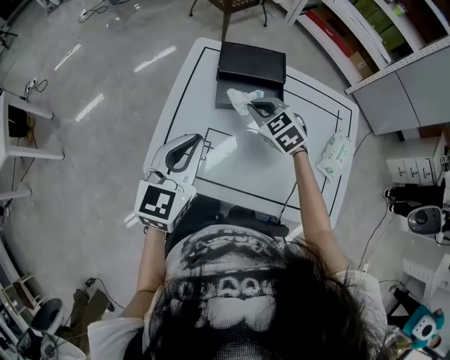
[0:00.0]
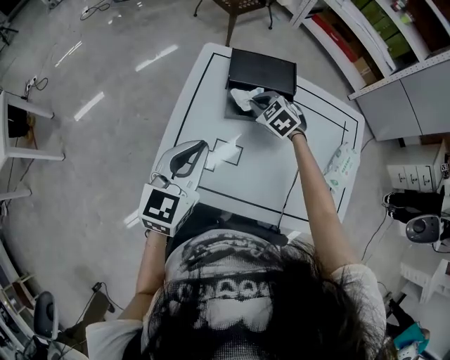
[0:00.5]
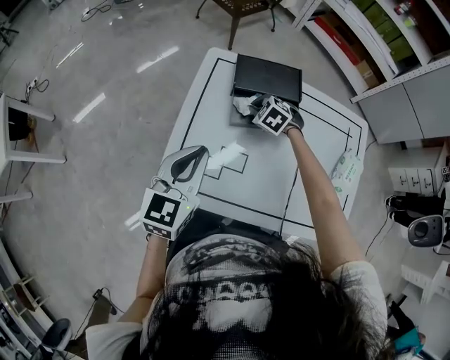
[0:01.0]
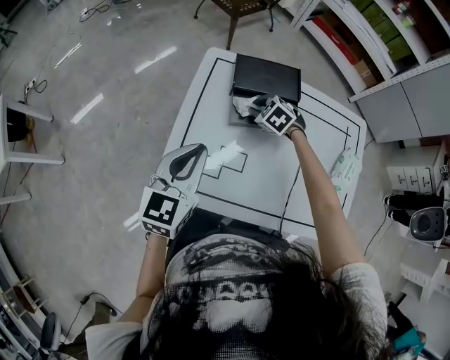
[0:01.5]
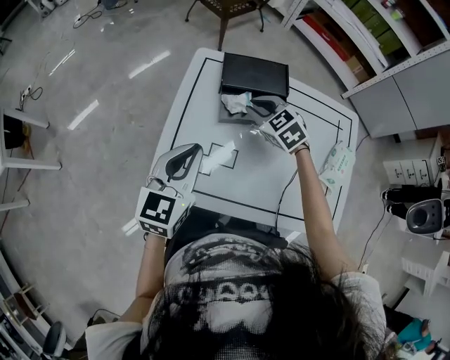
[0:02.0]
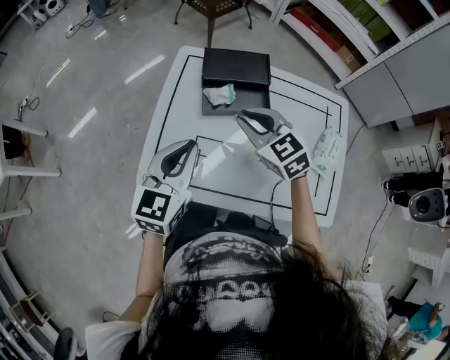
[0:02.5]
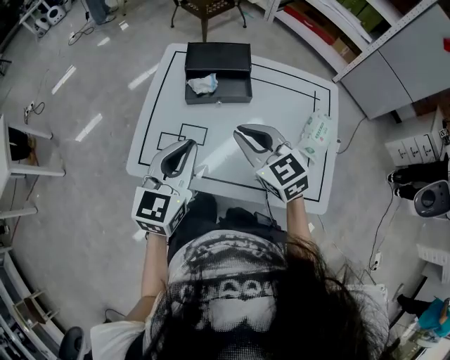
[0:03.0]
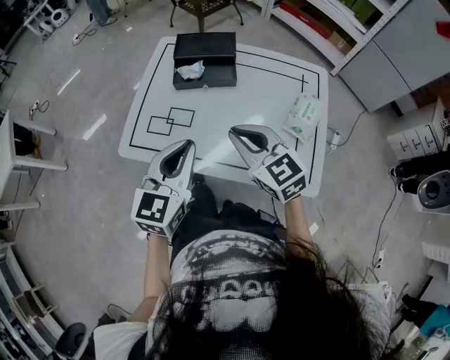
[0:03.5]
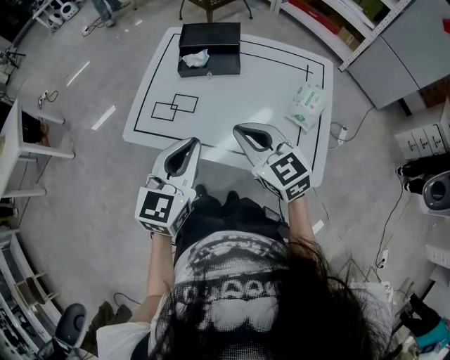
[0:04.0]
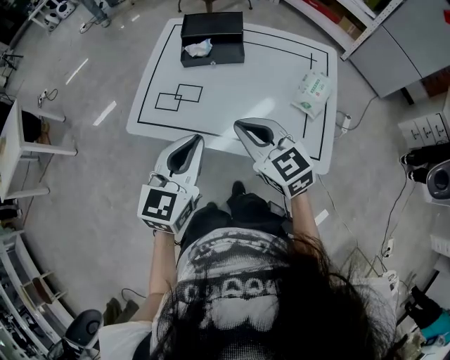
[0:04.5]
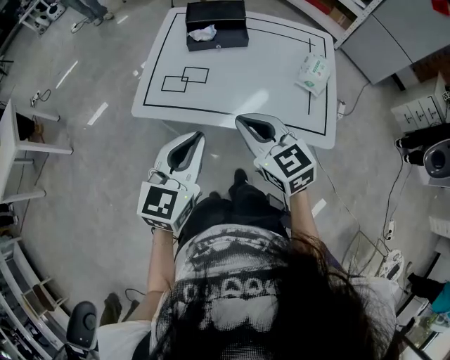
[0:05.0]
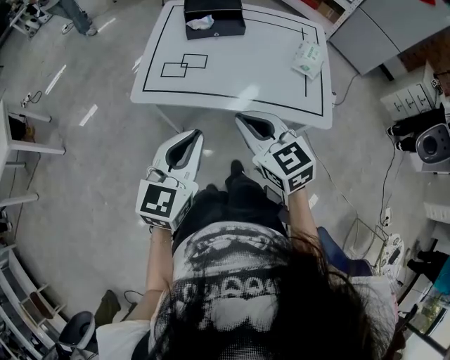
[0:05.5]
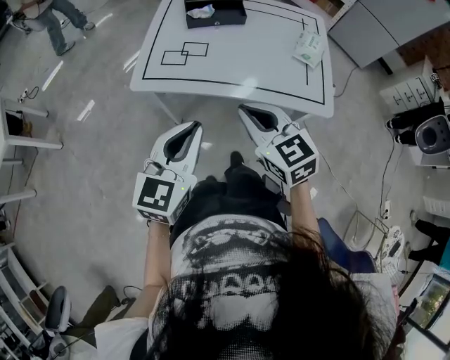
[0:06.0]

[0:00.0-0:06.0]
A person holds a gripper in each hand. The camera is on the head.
0:00.0 to 0:02.0: The right gripper travels forward by some 5 cm, and goes downward and returns, some 10 cm each way.
0:02.0 to 0:04.0: The left gripper shifts roughly 30 cm backward and to the right; the right gripper shifts roughly 35 cm backward, and swivels approximately 30 degrees.
0:04.0 to 0:06.0: The two grippers go approximately 20 cm backward and to the left.

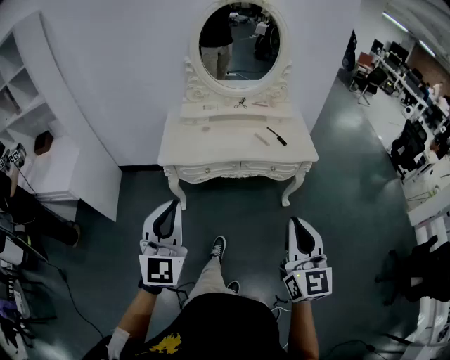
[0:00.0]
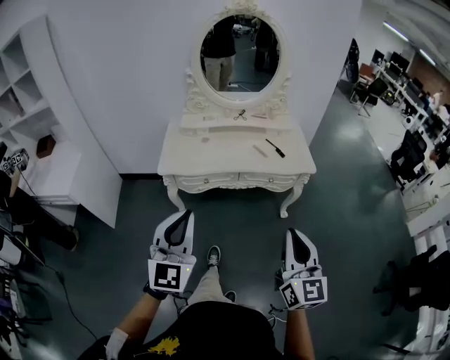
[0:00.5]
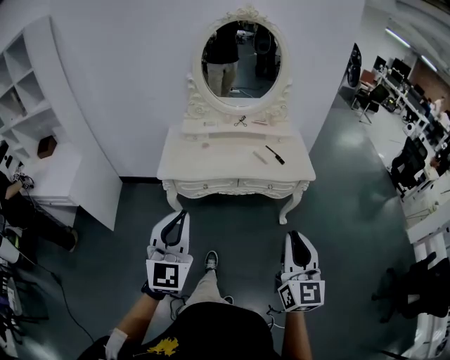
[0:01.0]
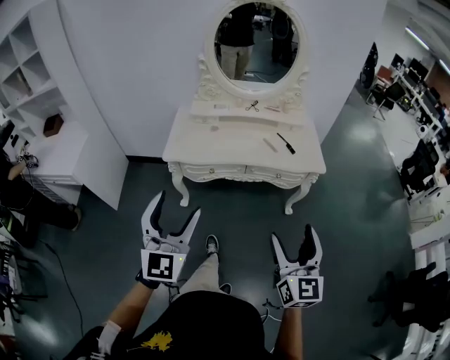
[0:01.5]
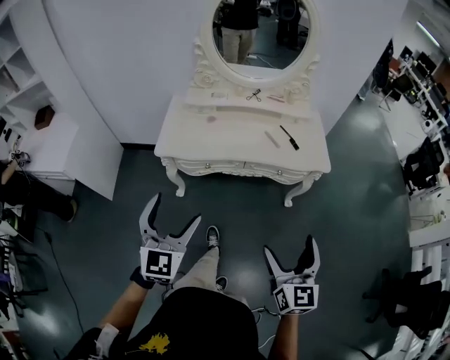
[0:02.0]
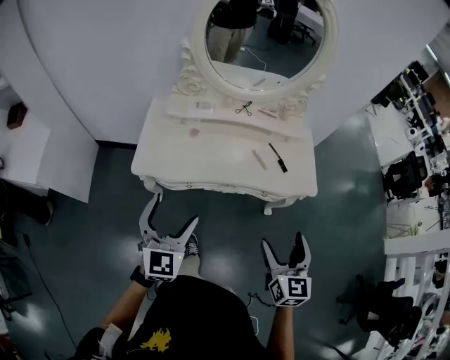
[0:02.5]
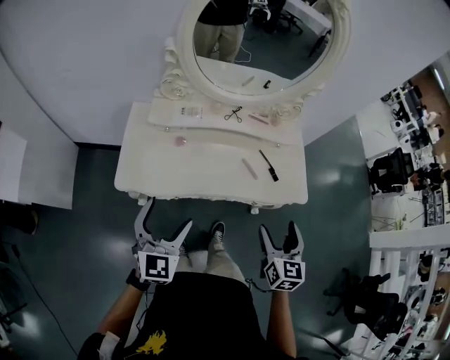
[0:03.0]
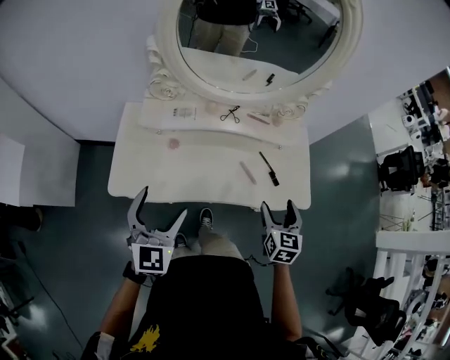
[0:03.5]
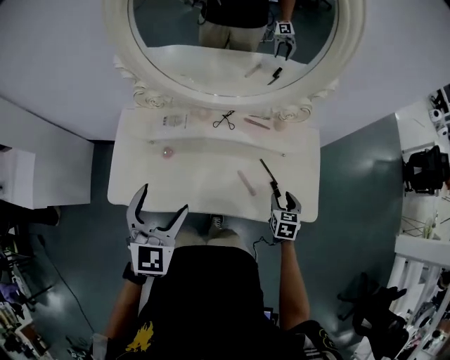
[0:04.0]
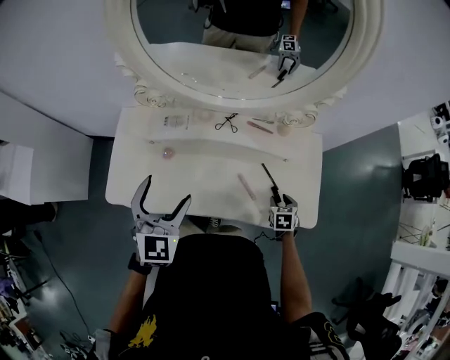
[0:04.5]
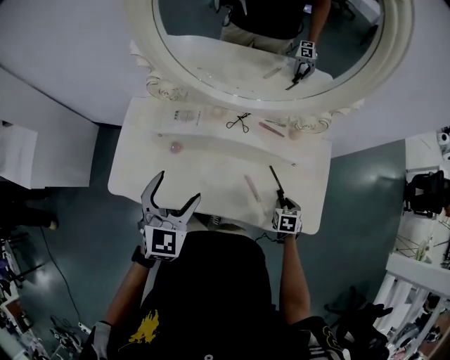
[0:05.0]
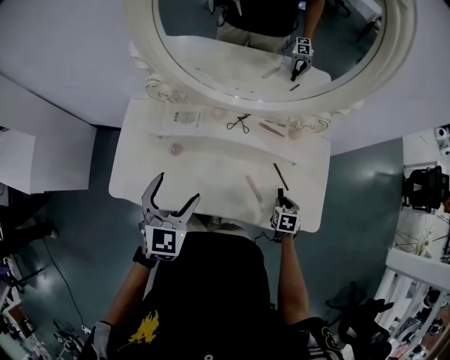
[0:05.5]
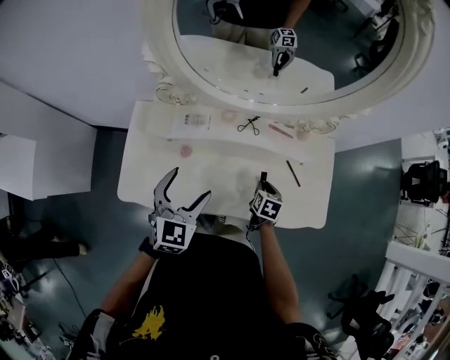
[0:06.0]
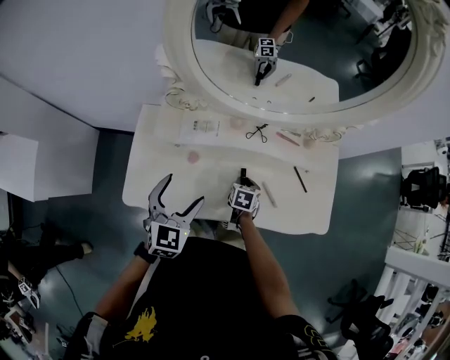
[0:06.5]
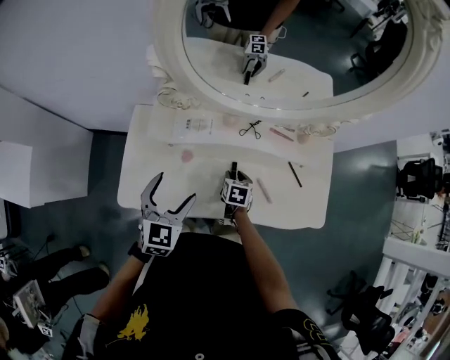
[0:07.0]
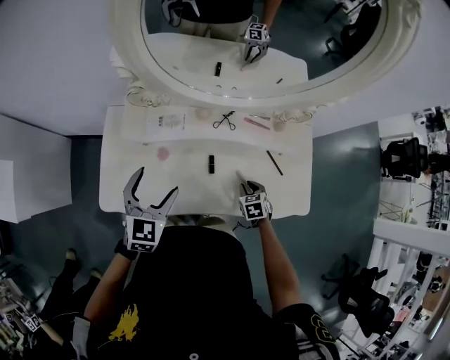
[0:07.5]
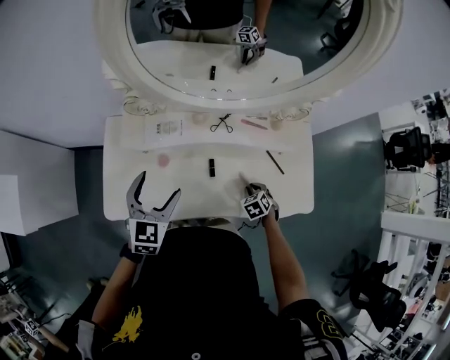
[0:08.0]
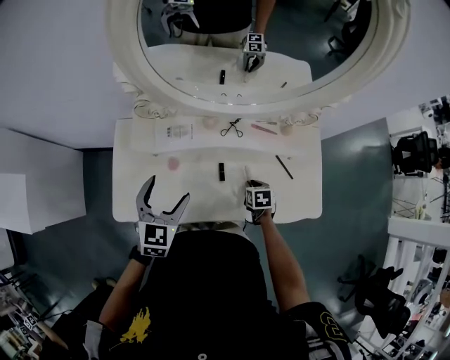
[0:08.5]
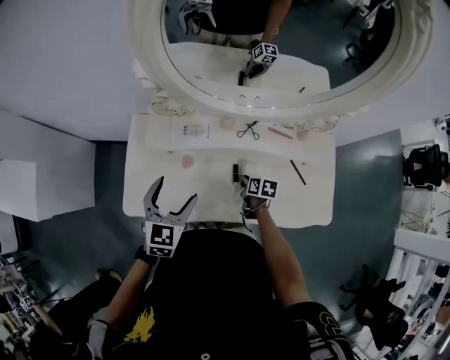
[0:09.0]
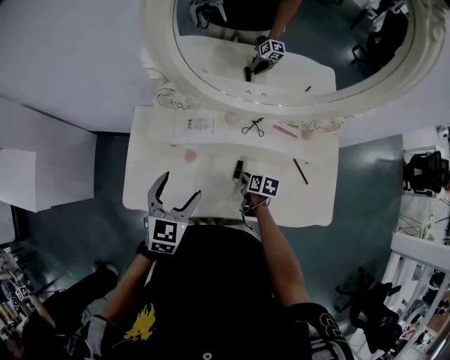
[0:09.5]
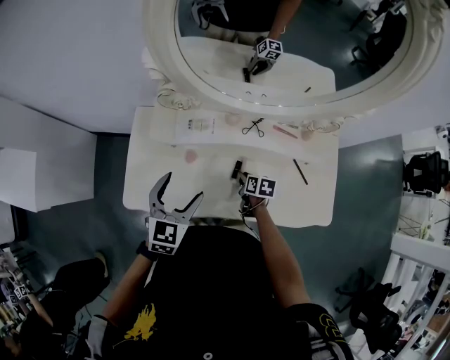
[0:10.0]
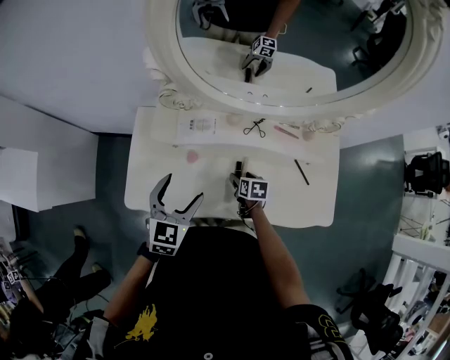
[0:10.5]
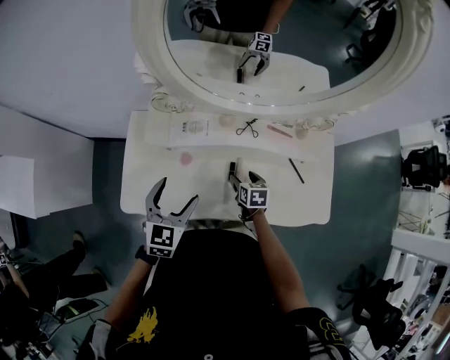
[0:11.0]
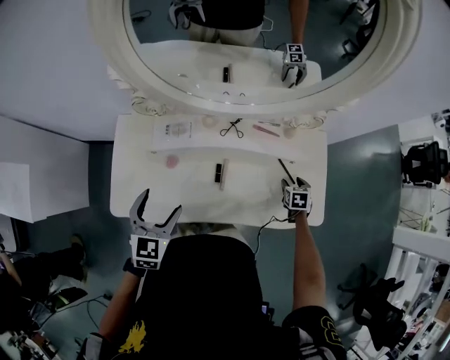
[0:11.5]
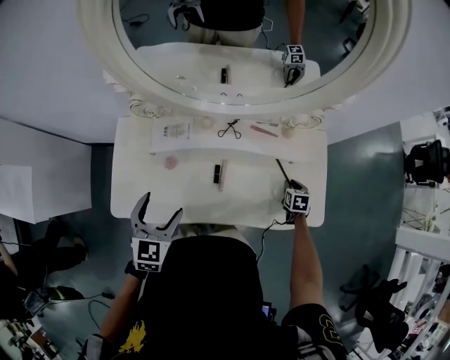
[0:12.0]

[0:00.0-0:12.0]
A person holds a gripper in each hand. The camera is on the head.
0:00.0 to 0:02.0: The grippers both shift forward and downward by some 15 cm. The right gripper opens up, while the left gripper opens.
0:02.0 to 0:04.0: Both grippers are carried forward, roughly 50 cm. The right gripper heads downward, covering roughly 30 cm, tips its fingers downward by roughly 40 degrees, and closes.
0:04.0 to 0:06.0: The right gripper is displaced to the left by approximately 15 cm. The left gripper moves downward and forward, about 10 cm.
0:06.0 to 0:08.0: The right gripper goes approximately 5 cm downward, goes to the left and returns, roughly 15 cm each way, and swivels some 40 degrees.
0:08.0 to 0:10.0: The right gripper shifts roughly 15 cm to the left and forward, and twists some 40 degrees clockwise, seen from behind.
0:10.0 to 0:12.0: The right gripper moves to the right, some 30 cm, changes its angle by some 30 degrees, and opens, then closes once more.

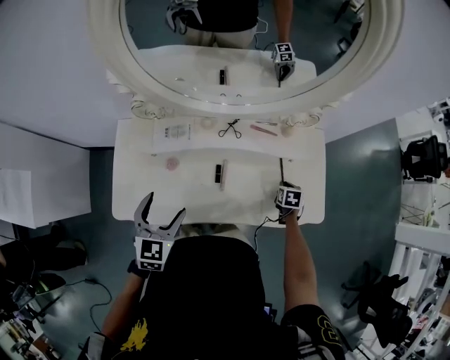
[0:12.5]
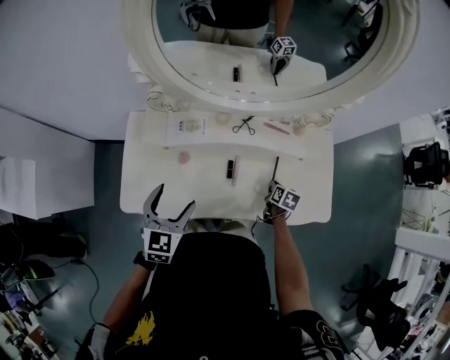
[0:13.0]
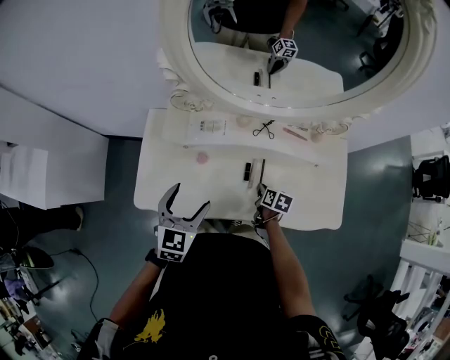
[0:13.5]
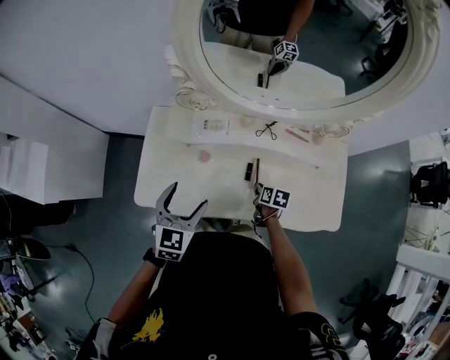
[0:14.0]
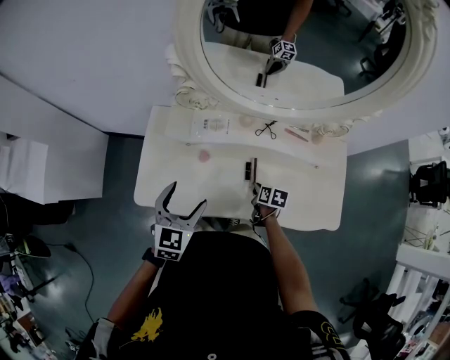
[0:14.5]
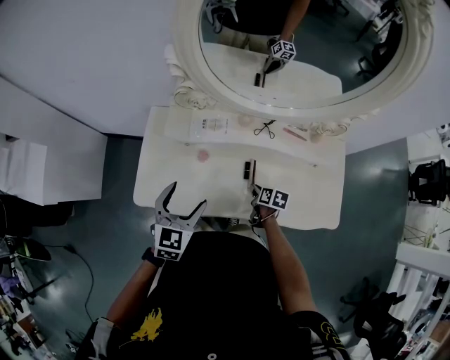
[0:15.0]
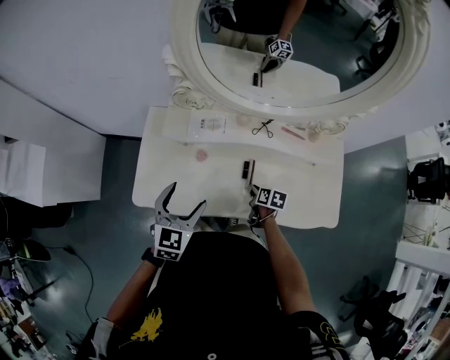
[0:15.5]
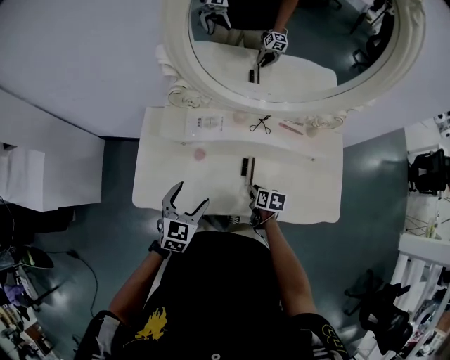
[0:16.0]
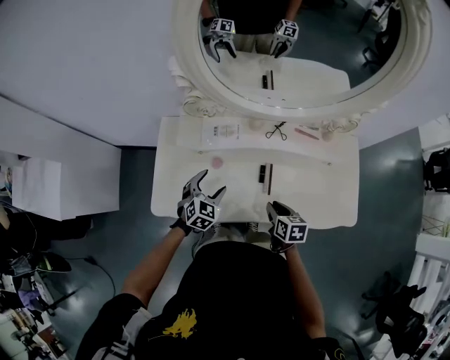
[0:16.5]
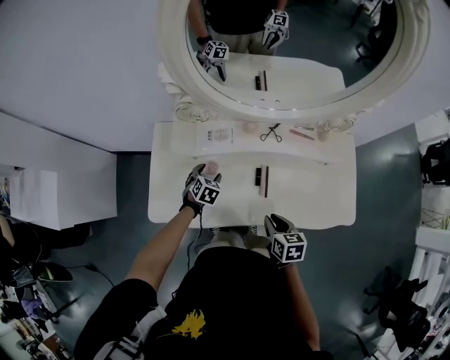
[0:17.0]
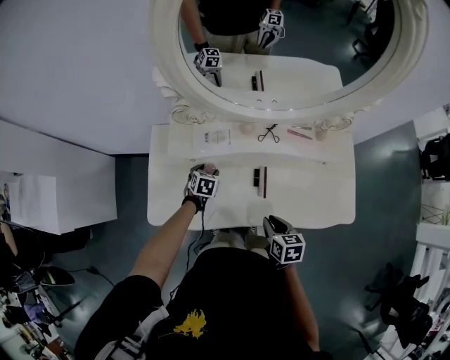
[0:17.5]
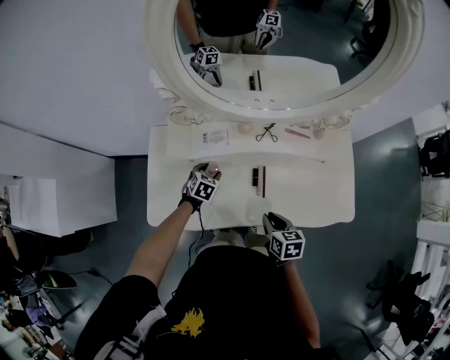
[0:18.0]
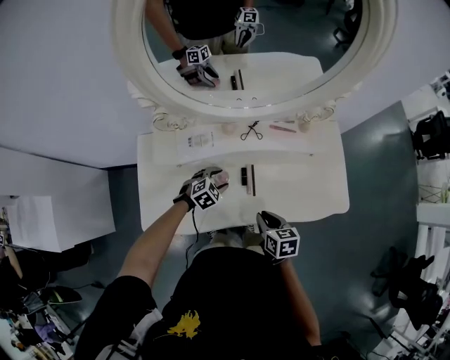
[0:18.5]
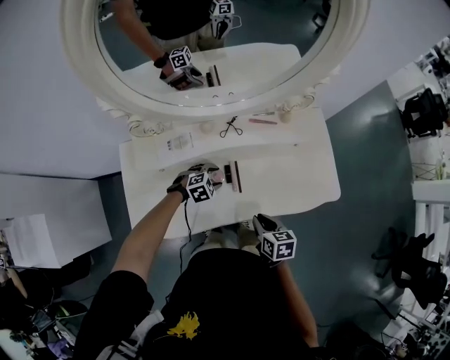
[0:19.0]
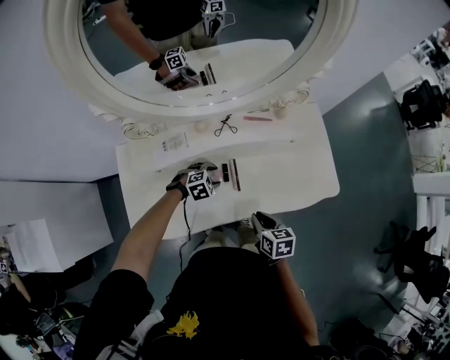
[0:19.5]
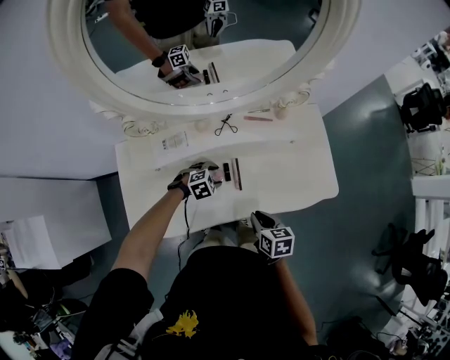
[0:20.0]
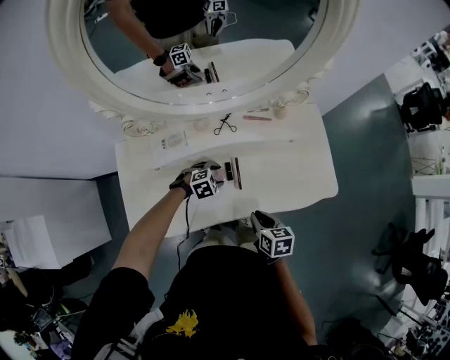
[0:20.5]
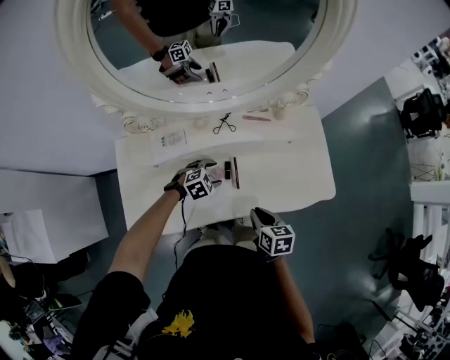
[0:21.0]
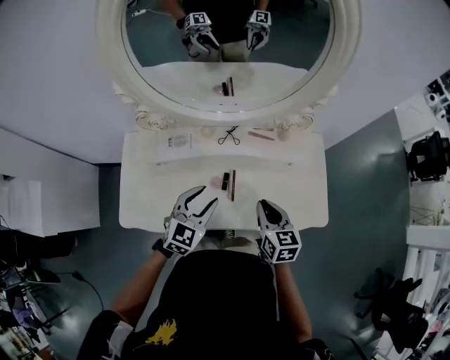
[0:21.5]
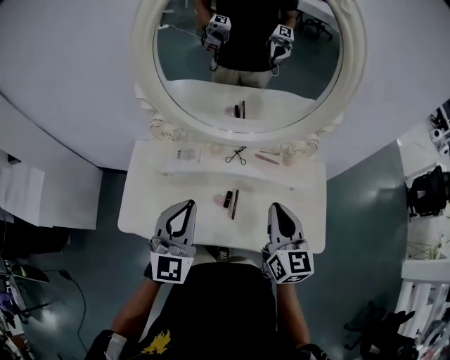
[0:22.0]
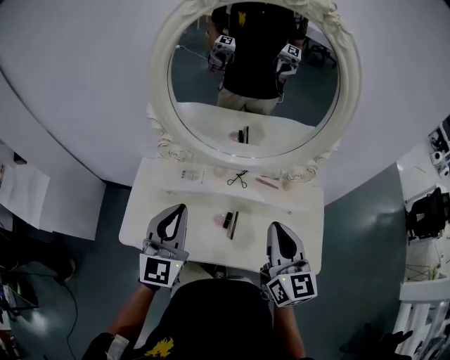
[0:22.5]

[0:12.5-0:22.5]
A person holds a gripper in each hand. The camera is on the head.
0:12.5 to 0:14.5: The left gripper goes about 5 cm to the left; the right gripper is displaced to the left by some 25 cm, and rotates approximately 30 degrees.
0:14.5 to 0:16.5: The right gripper shifts roughly 10 cm upward and backward; the left gripper goes roughly 15 cm downward and forward, and changes its angle by roughly 20 degrees.
0:16.5 to 0:18.5: The left gripper shifts roughly 15 cm to the right and downward, and changes its angle by some 30 degrees.
0:18.5 to 0:20.5: Both grippers move to the right, roughly 5 cm. The left gripper rotates approximately 20 degrees.
0:20.5 to 0:22.5: Both grippers travel together upward, approximately 35 cm. The right gripper tips its fingers upward by some 50 degrees, while the left gripper points its fingers about 70 degrees further upward, and closes up.
